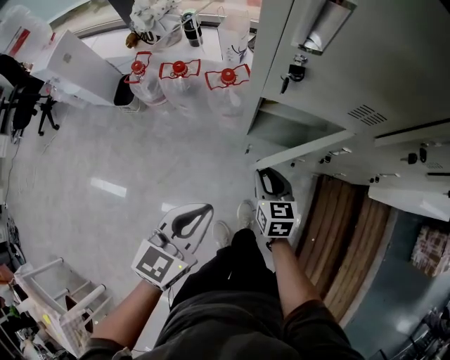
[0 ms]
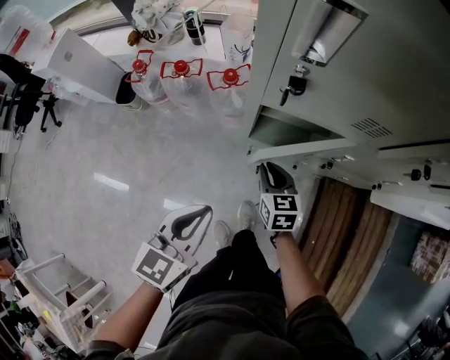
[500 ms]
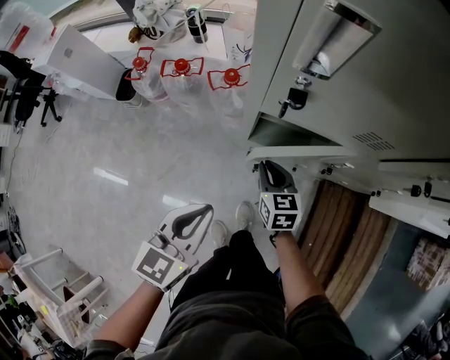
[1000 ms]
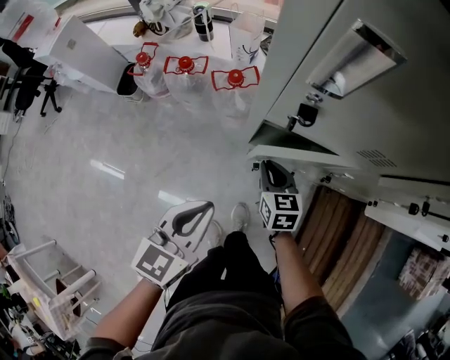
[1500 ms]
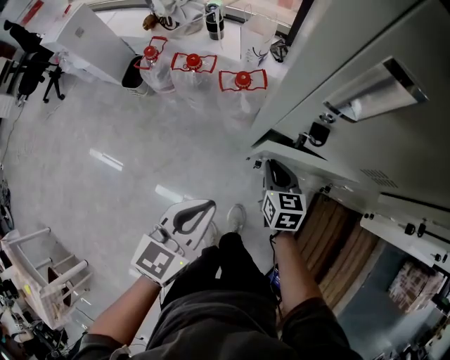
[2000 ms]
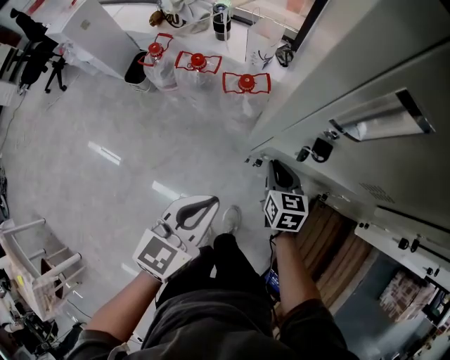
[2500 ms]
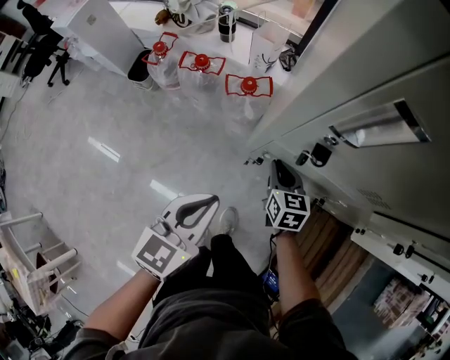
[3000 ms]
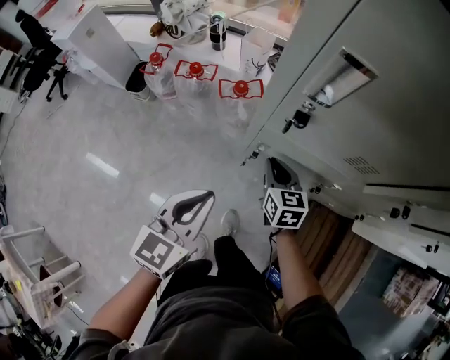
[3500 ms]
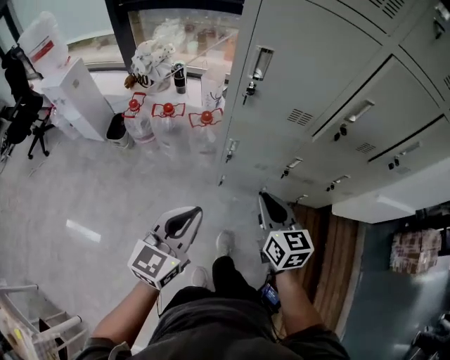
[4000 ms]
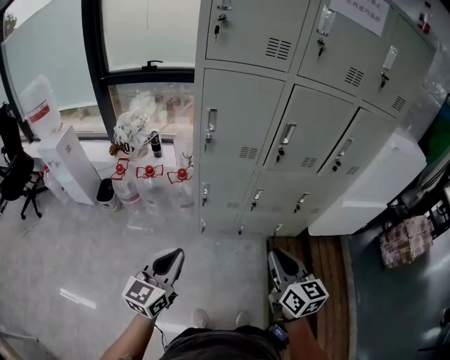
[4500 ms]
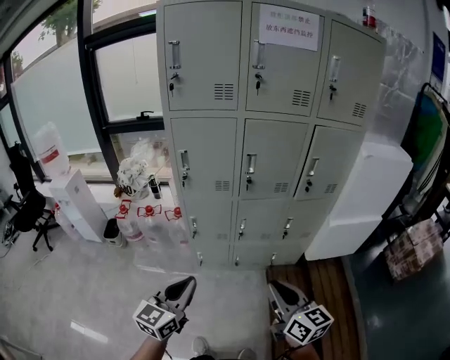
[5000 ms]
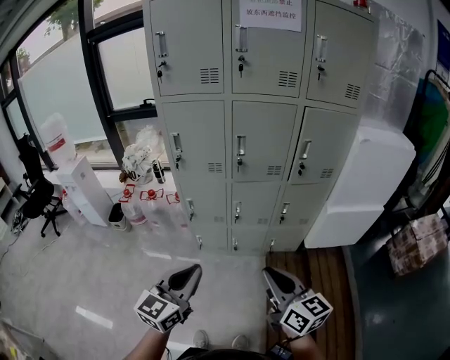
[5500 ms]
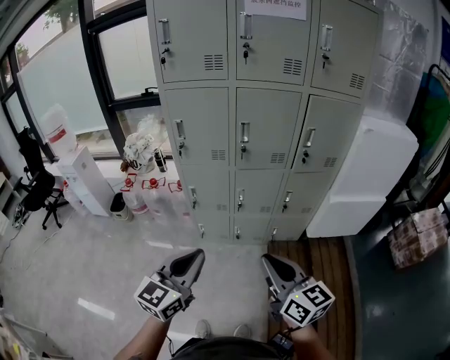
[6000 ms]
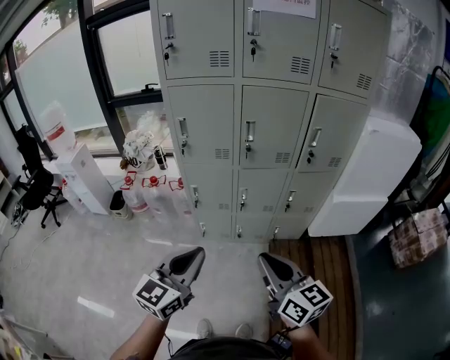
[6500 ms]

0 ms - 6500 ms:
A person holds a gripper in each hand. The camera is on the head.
0 ms - 2000 ms: The grippers both shift forward by about 10 cm.
2000 ms - 4500 ms: The right gripper is displaced backward and upward by approximately 50 cm, and changes its angle by some 30 degrees. Meanwhile the left gripper is displaced backward and upward by about 30 cm, and changes its angle by approximately 20 degrees.
4500 ms - 6500 ms: The left gripper moves to the right, upward and backward, some 25 cm; the right gripper travels backward, to the right and upward by approximately 15 cm.

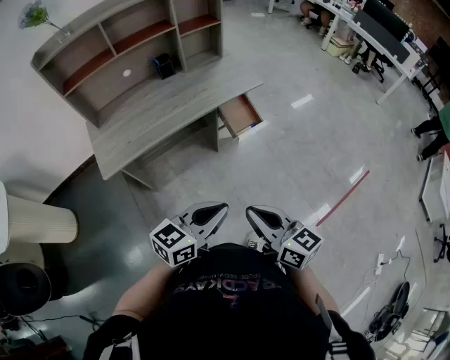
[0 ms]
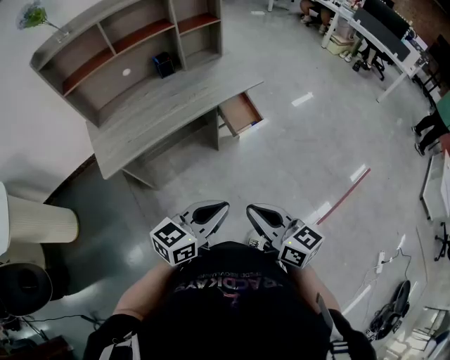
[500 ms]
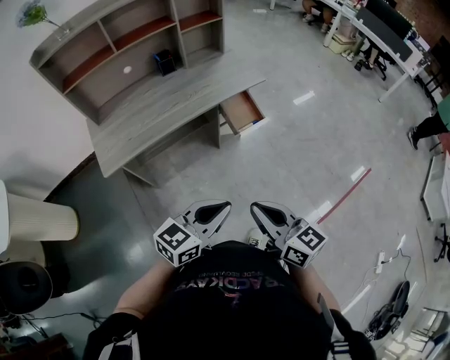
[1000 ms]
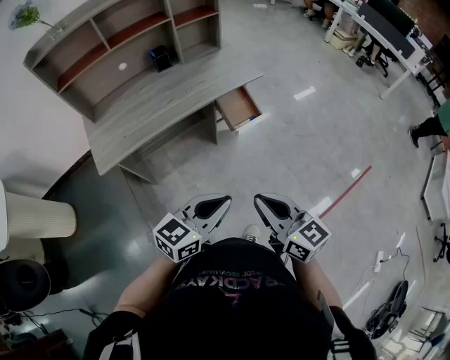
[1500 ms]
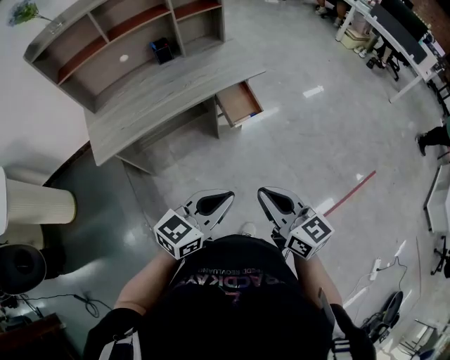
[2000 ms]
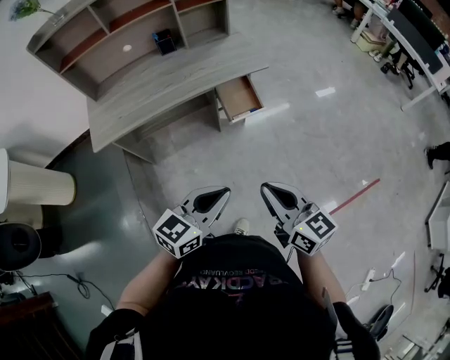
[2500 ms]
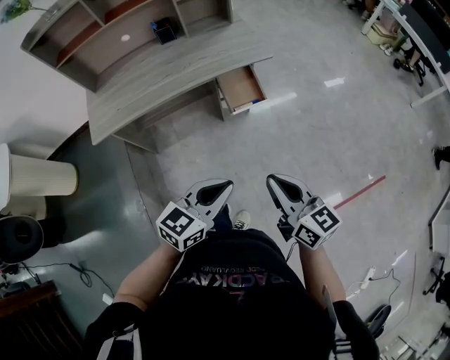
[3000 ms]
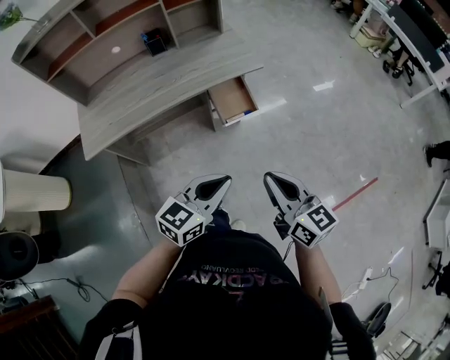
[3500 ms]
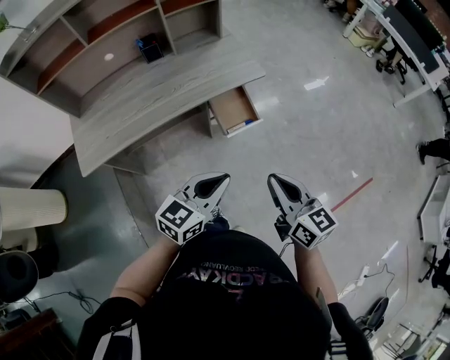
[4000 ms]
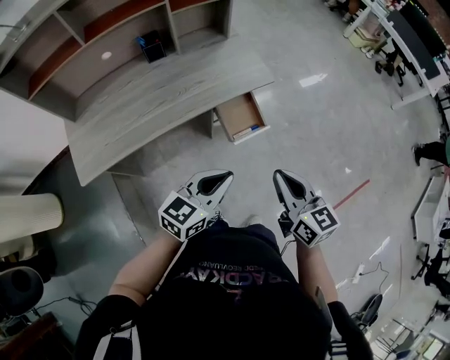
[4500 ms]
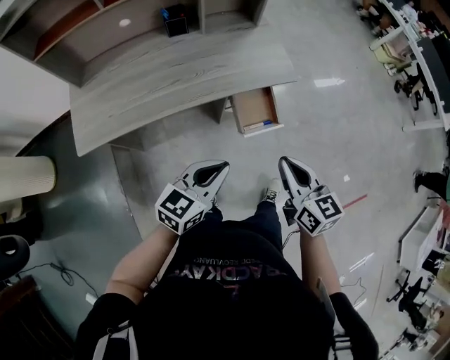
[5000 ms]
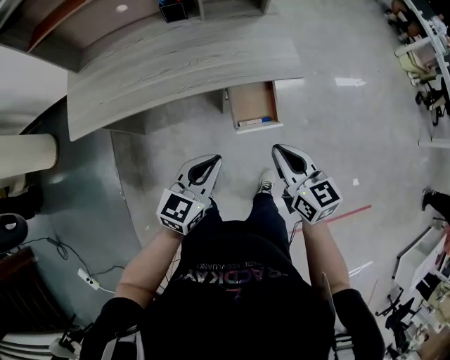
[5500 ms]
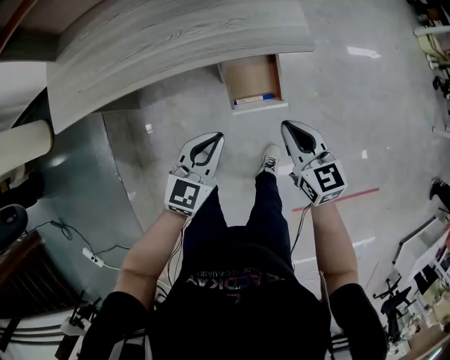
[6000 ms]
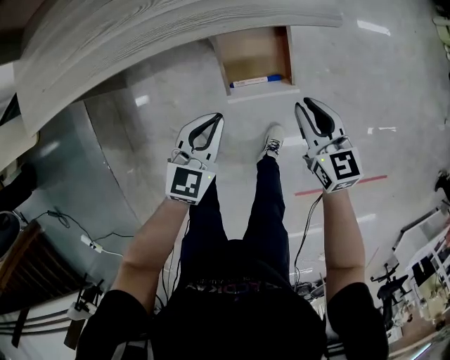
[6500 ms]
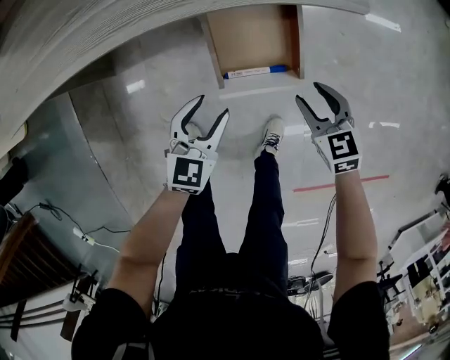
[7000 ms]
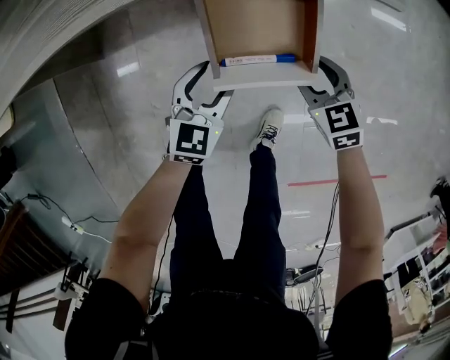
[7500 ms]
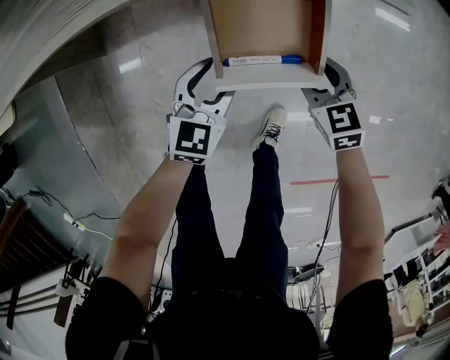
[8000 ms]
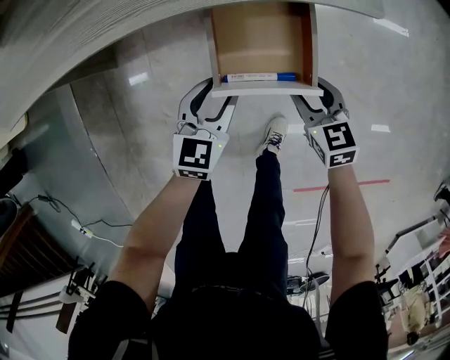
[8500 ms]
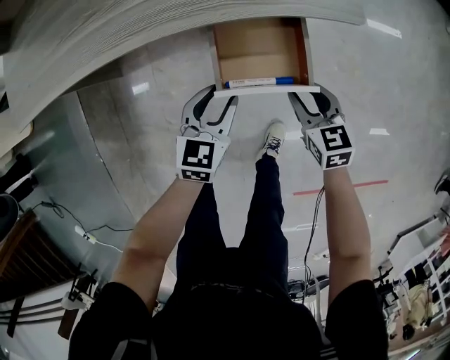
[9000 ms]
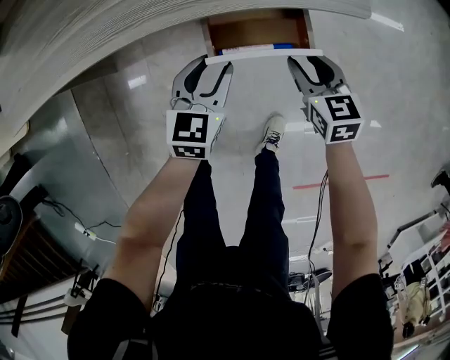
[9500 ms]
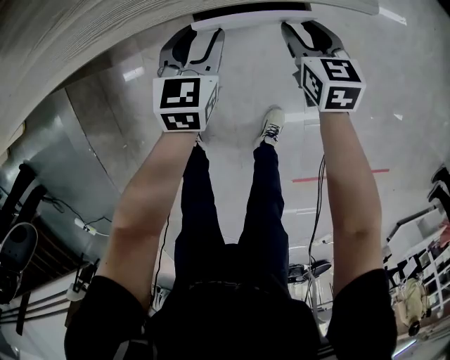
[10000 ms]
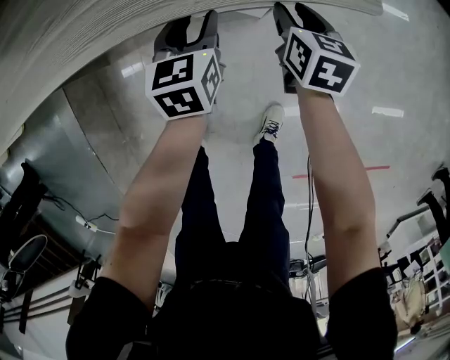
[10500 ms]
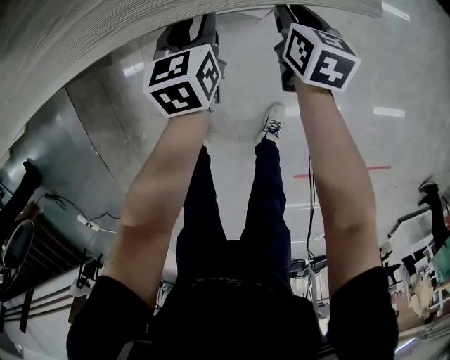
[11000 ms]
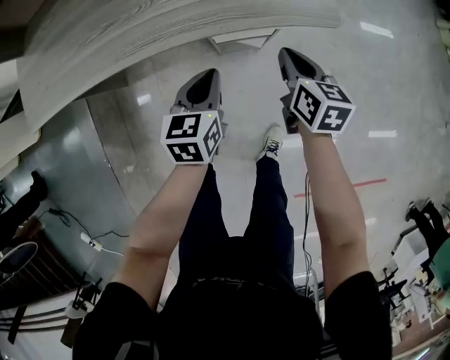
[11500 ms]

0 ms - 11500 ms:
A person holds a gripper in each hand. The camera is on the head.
0 ms - 2000 ms: The left gripper moves to the right, some 5 cm. The right gripper is displaced to the right and forward by some 10 cm.
2000 ms - 4000 ms: The left gripper travels forward by approximately 15 cm; the right gripper moves forward and to the right, roughly 15 cm.
4000 ms - 6000 ms: The right gripper moves some 25 cm, and turns by roughly 30 degrees, while the left gripper changes place by about 15 cm, and swivels about 30 degrees.
6000 ms - 7500 ms: Both grippers move downward, approximately 25 cm. The left gripper opens. Meanwhile the right gripper turns by about 30 degrees, and opens.
7500 ms - 9500 ms: The right gripper shifts approximately 5 cm upward. Meanwhile the left gripper is displaced upward and forward by approximately 10 cm.
9500 ms - 11500 ms: The two grippers go about 5 cm upward. The right gripper moves approximately 10 cm forward and comes back, turns by roughly 20 degrees, and closes its fingers. The left gripper moves about 10 cm forward and comes back, and closes up.

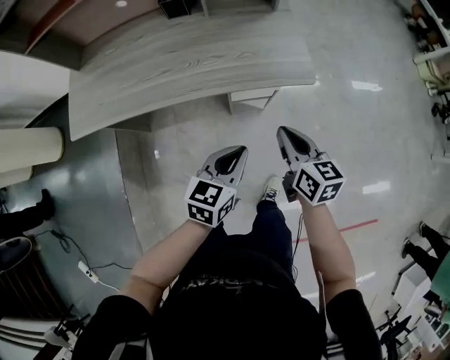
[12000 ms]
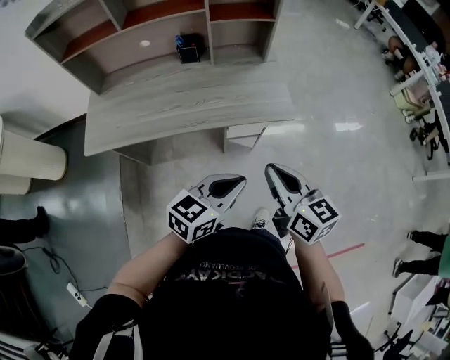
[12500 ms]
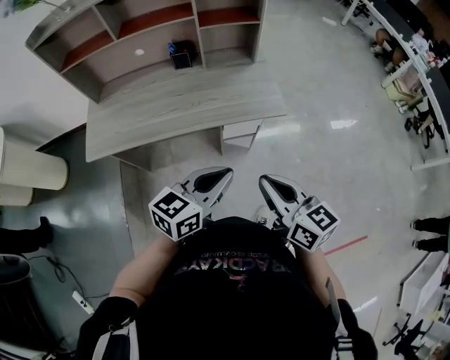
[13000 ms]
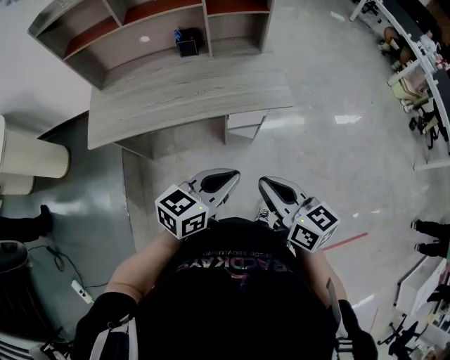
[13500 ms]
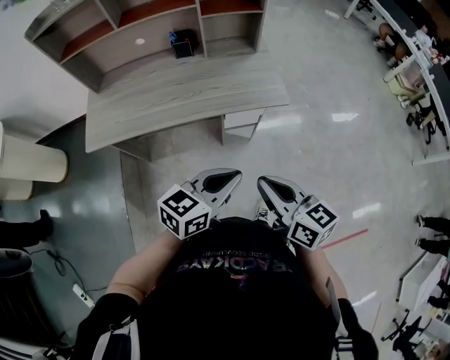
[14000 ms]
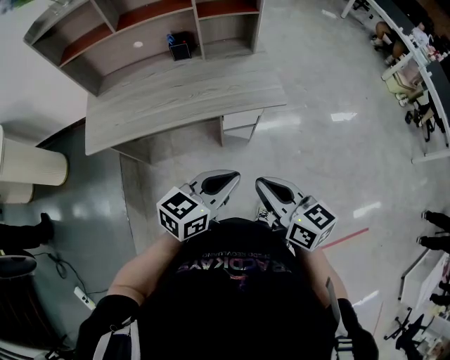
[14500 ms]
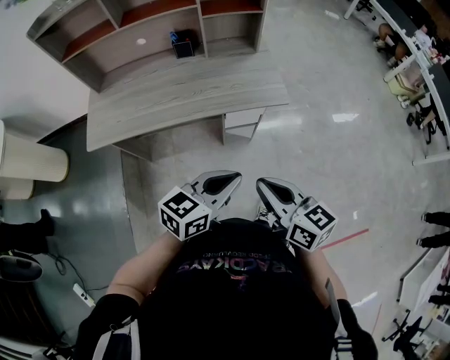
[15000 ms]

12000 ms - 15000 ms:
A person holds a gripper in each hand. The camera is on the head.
12000 ms - 13500 ms: Both grippers move upward and backward, some 20 cm.
13500 ms - 15000 ms: The grippers stay close to where they were, moving slightly.

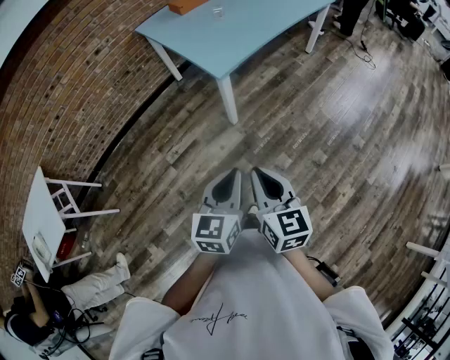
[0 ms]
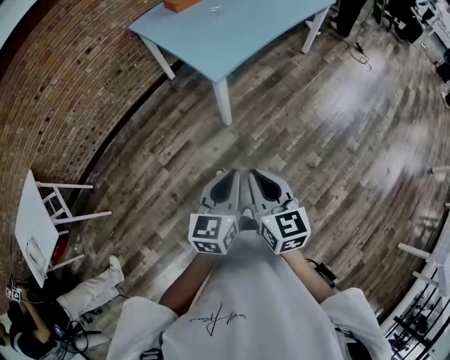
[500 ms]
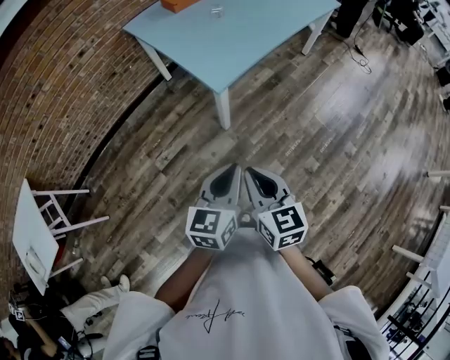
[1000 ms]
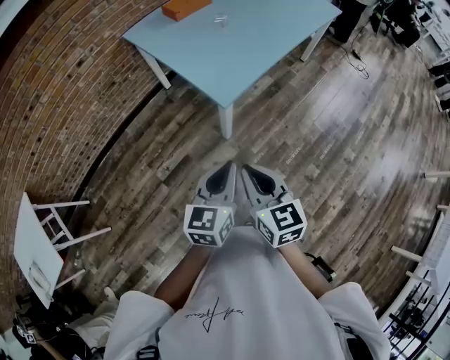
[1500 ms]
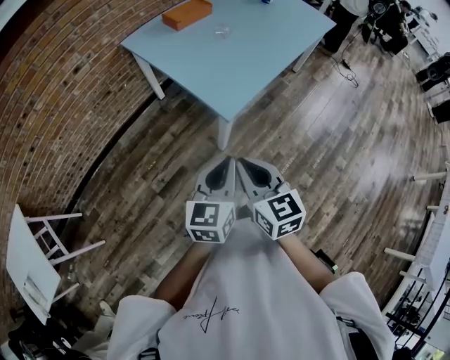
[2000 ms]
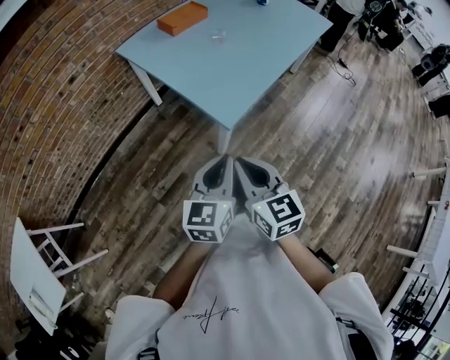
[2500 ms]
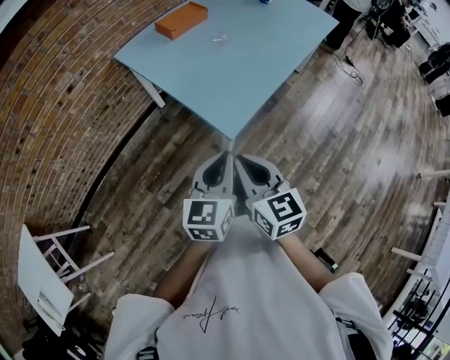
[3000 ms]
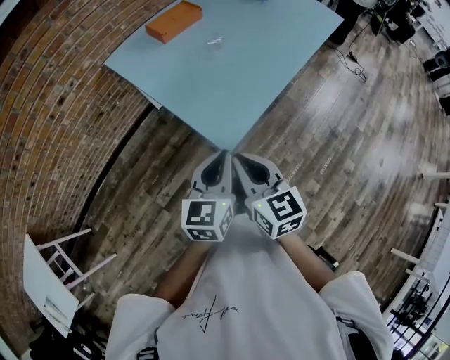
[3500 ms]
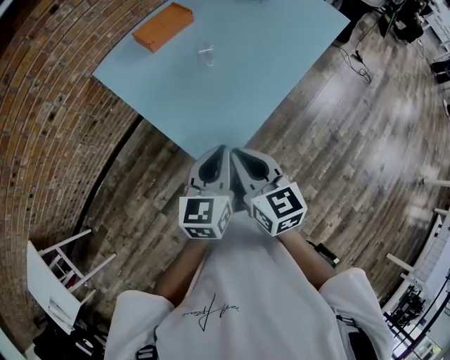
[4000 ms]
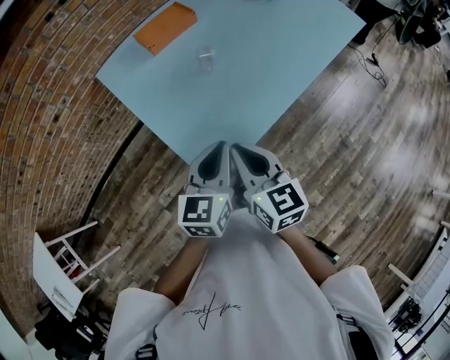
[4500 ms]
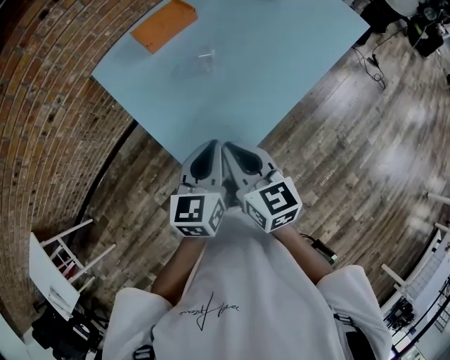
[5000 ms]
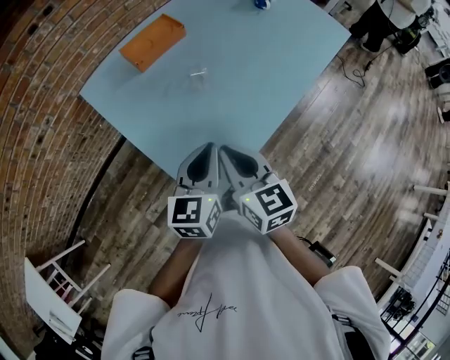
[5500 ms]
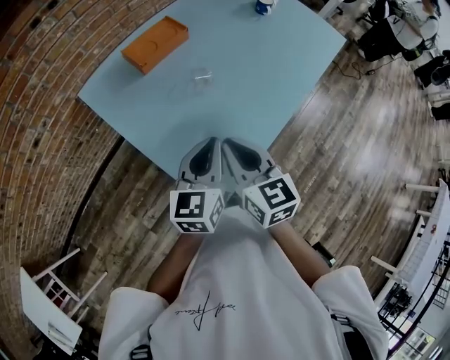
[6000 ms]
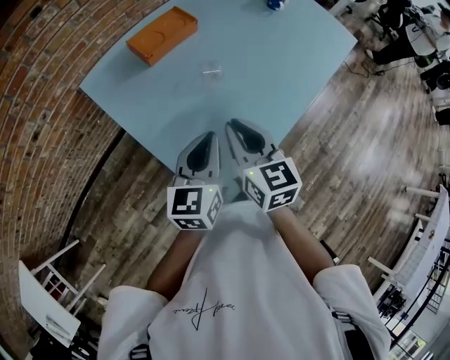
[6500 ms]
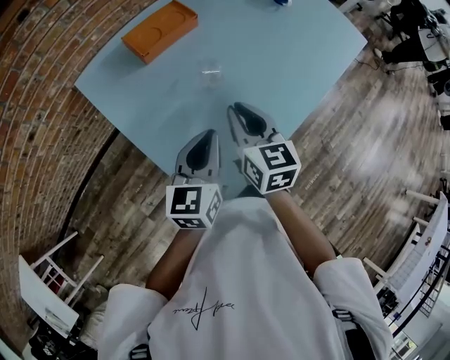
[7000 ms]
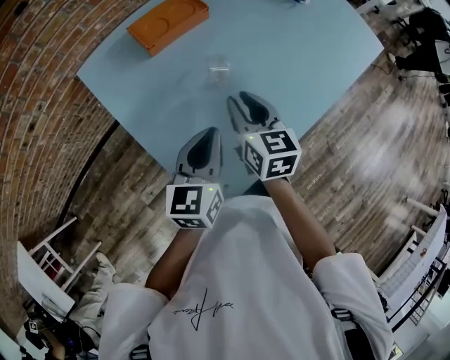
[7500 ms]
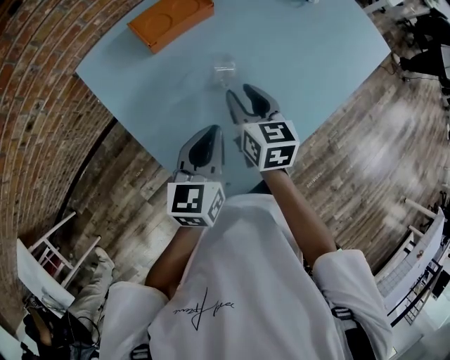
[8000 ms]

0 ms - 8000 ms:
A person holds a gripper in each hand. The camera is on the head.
0 ms - 2000 ms: The left gripper moves forward, some 20 cm. The right gripper shifts approximately 25 cm forward and to the left.
2000 ms - 4000 ms: The grippers both shift forward by about 25 cm.
4000 ms - 6000 ms: The two grippers go approximately 15 cm forward.
6000 ms - 8000 ms: The left gripper shifts approximately 10 cm forward. The right gripper heads forward and downward, covering some 20 cm, and opens.
